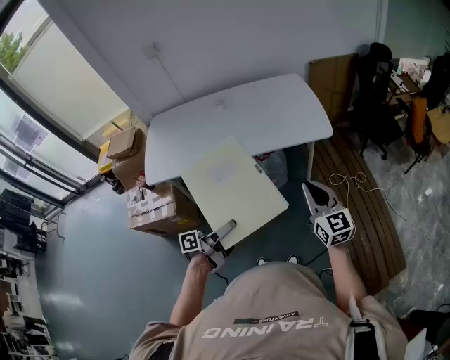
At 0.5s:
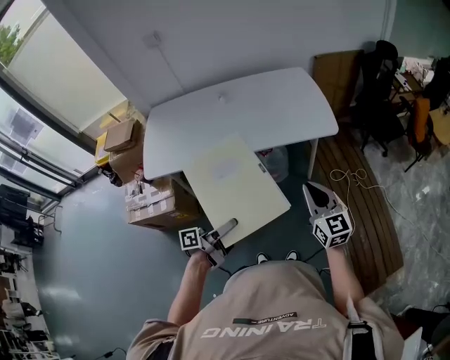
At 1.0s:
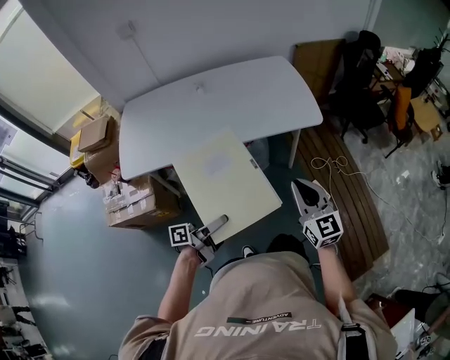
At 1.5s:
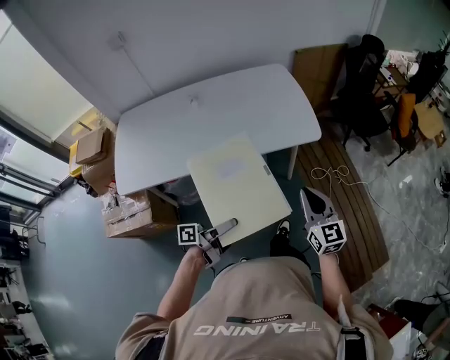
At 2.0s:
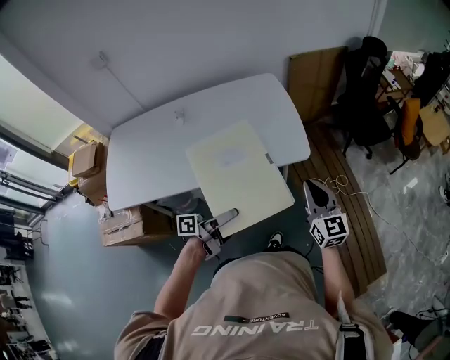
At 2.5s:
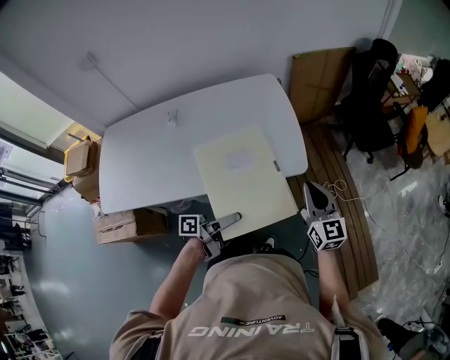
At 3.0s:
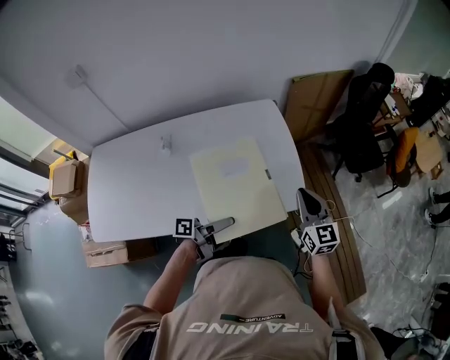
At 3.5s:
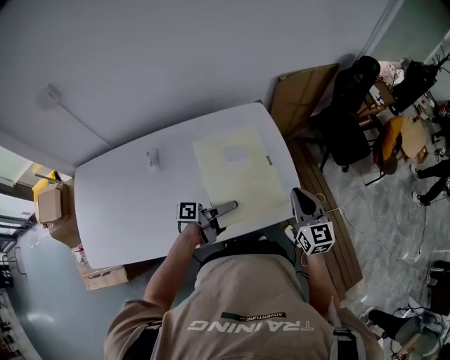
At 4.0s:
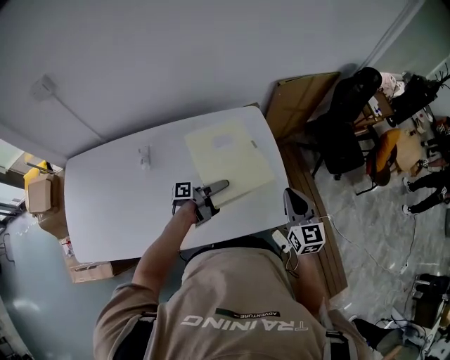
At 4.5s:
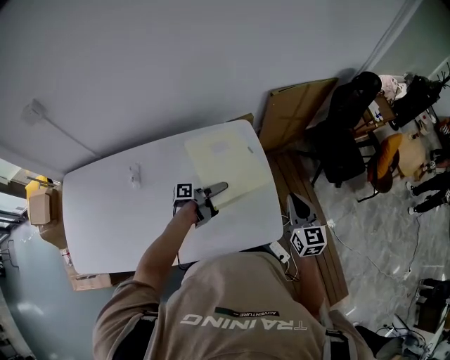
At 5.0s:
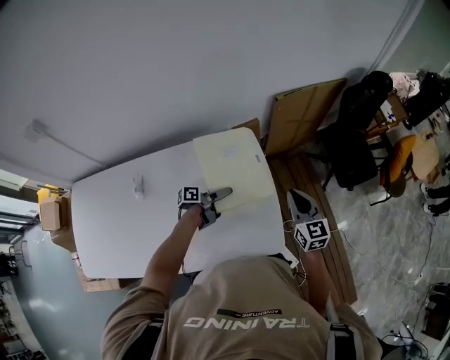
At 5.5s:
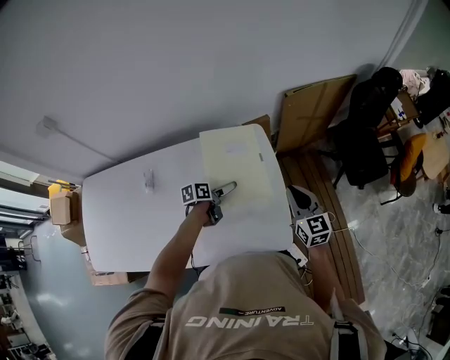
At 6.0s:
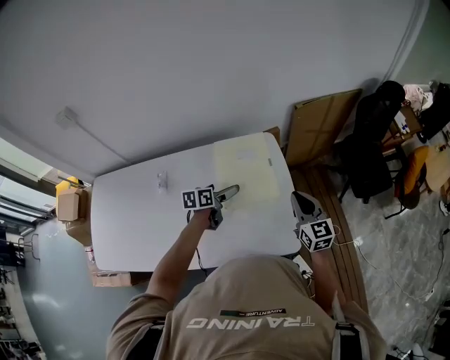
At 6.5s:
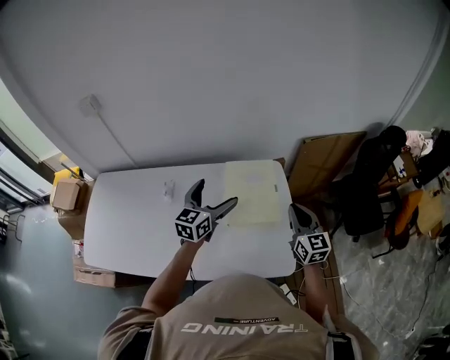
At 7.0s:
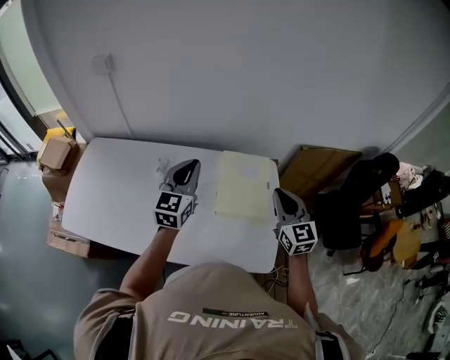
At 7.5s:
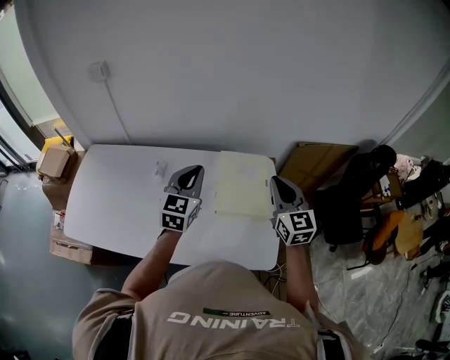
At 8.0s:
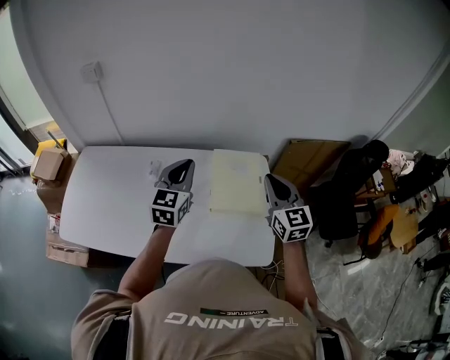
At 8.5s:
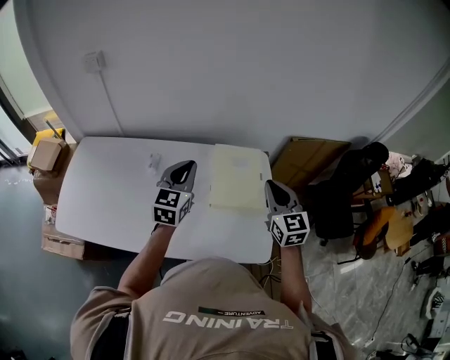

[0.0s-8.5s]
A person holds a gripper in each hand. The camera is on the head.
0.0s to 2.0s: The right gripper goes about 25 cm forward and to the right. The left gripper shifts some 25 cm forward.
2.0s to 4.0s: The left gripper moves forward, some 40 cm; the right gripper is displaced forward and to the left by about 30 cm.
4.0s to 6.5s: The left gripper goes about 20 cm upward, twists roughly 80 degrees clockwise, seen from behind, and opens up. Meanwhile the right gripper shifts by some 10 cm.
6.5s to 8.5s: The left gripper moves to the left, roughly 5 cm, and closes up. Meanwhile the right gripper shifts some 10 cm to the left and upward.

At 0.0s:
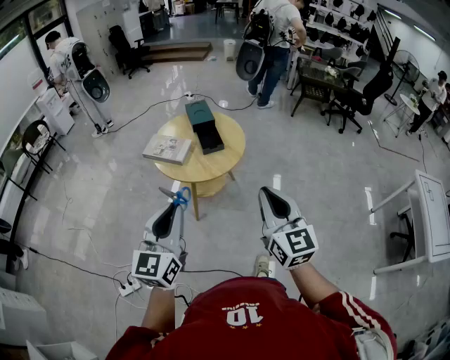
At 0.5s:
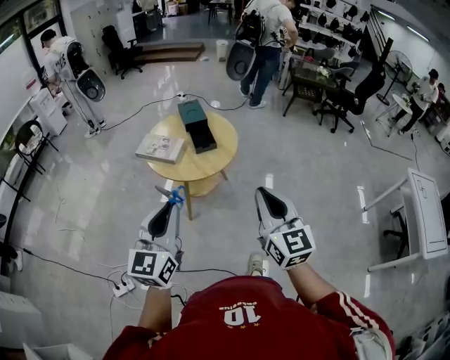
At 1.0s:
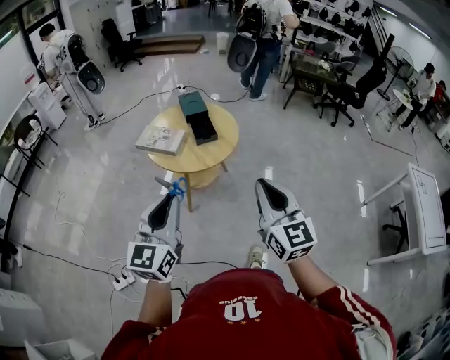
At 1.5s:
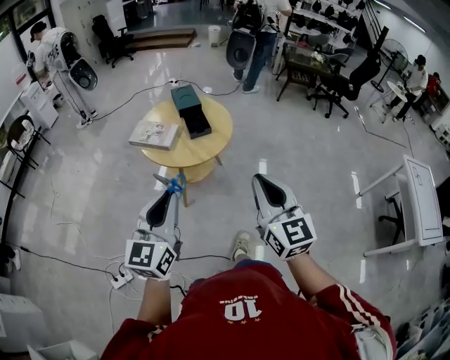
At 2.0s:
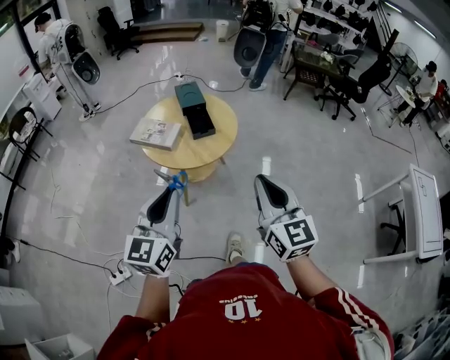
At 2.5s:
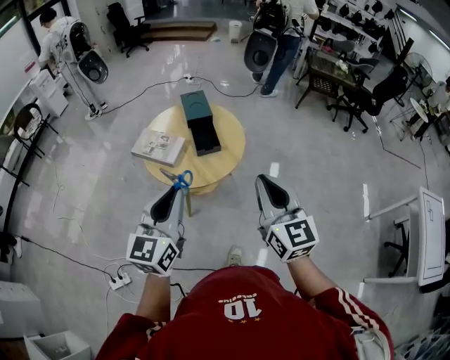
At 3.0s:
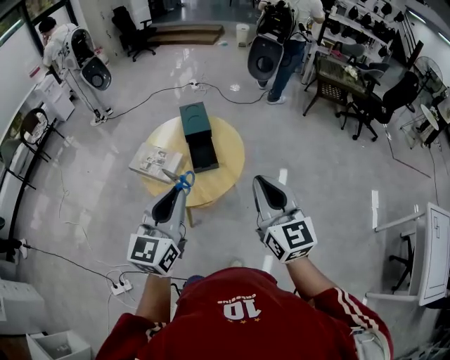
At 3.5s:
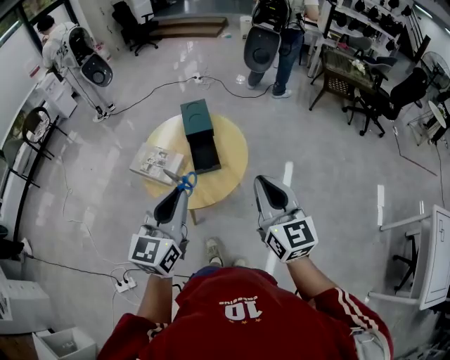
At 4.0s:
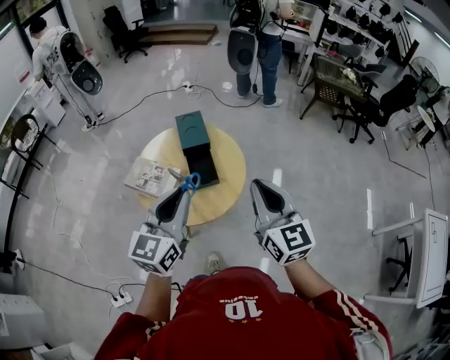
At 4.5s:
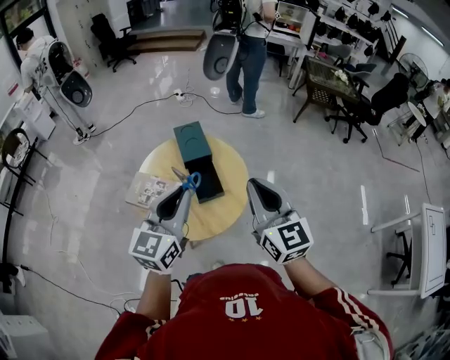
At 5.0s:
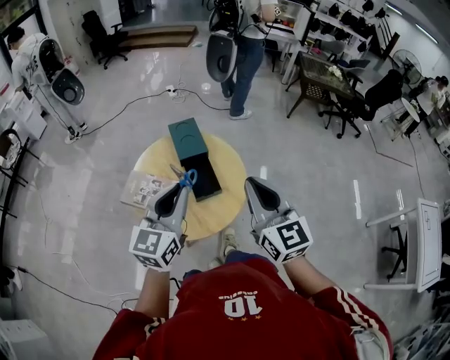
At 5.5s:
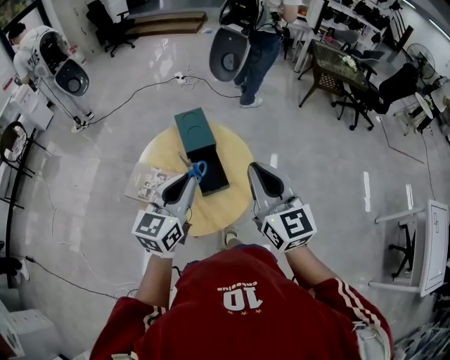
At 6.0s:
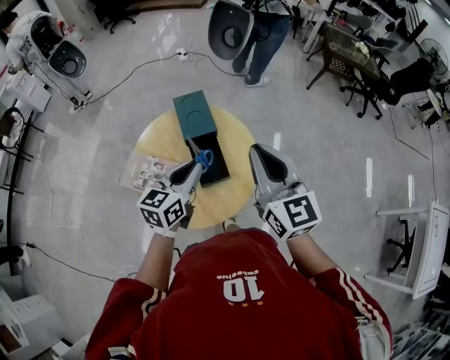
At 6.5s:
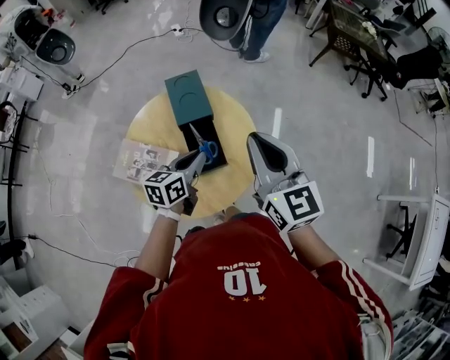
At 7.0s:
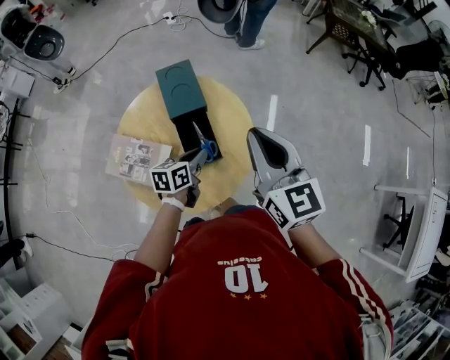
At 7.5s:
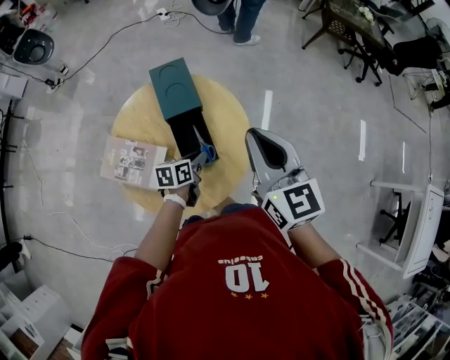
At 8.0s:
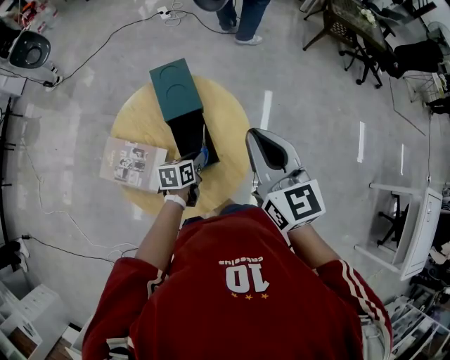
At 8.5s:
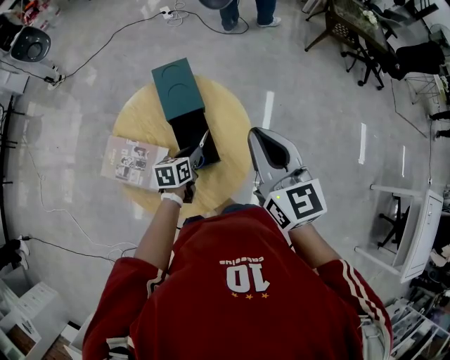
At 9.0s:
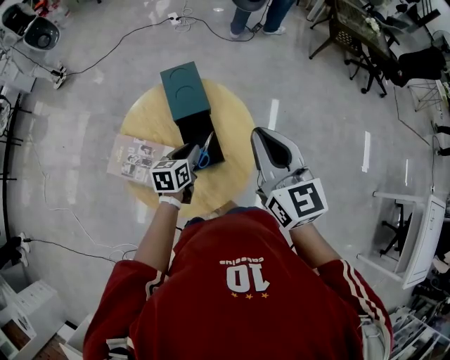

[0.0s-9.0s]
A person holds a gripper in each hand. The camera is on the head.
0.0s to 2.0s: The grippers move only a little.
2.0s to 4.5s: Both grippers travel together forward, some 35 cm.
4.5s to 7.0s: The right gripper heads forward and downward, covering about 20 cm. Meanwhile the left gripper travels downward and forward by approximately 35 cm, and turns by roughly 50 degrees.

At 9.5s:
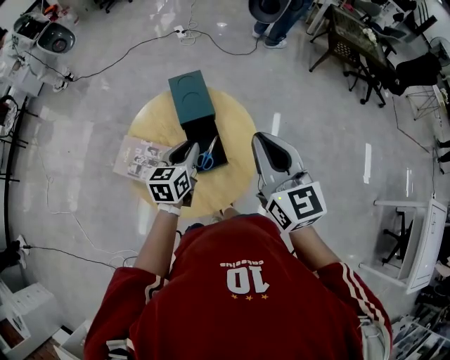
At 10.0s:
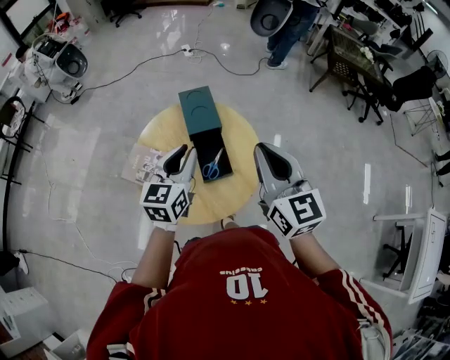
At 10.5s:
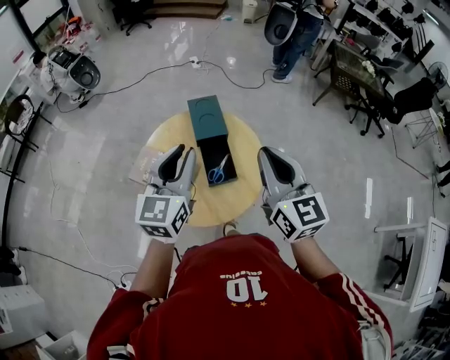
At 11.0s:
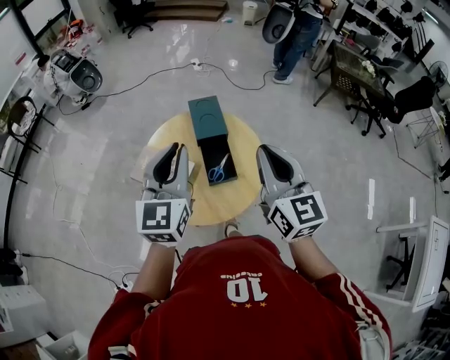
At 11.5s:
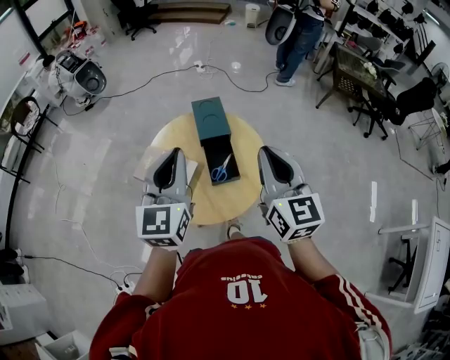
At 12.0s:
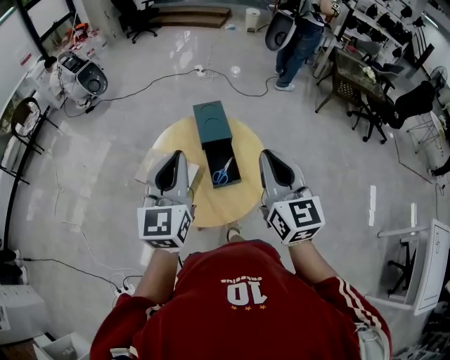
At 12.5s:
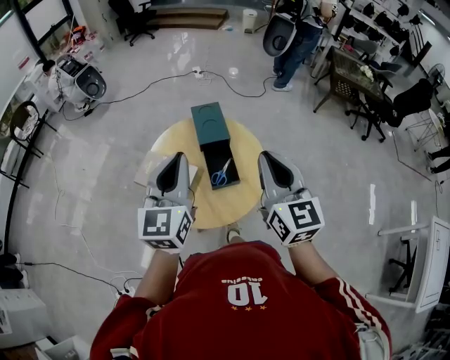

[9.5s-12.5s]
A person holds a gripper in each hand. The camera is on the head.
9.5s to 11.0s: The left gripper heads upward, covering some 25 cm, and turns by roughly 40 degrees. Meanwhile the right gripper is displaced backward and upward by about 10 cm.
11.0s to 12.5s: There are only small adjustments of the grippers.

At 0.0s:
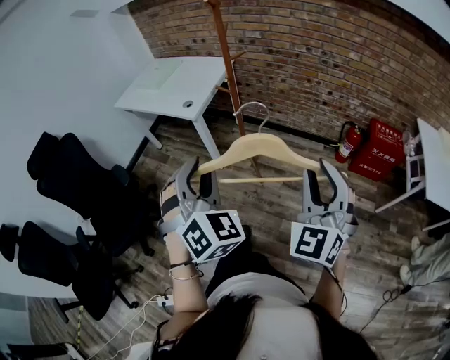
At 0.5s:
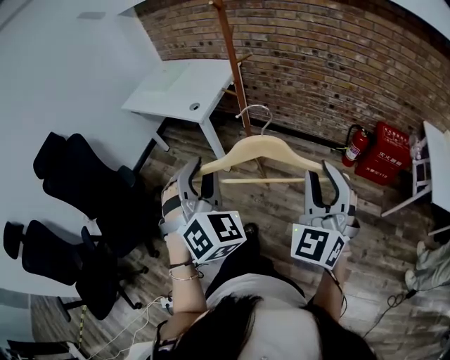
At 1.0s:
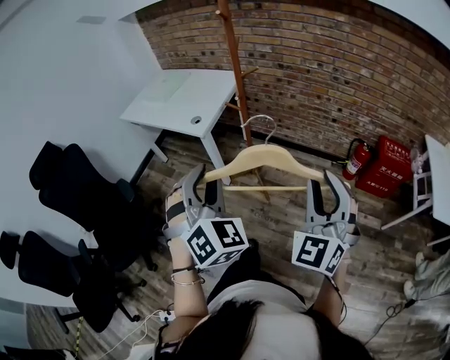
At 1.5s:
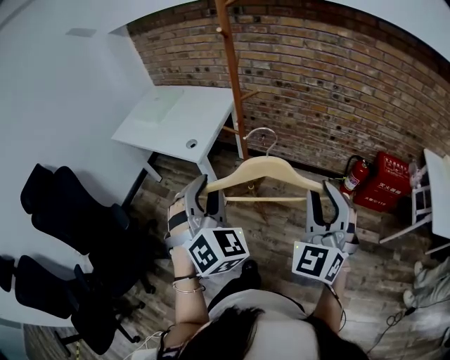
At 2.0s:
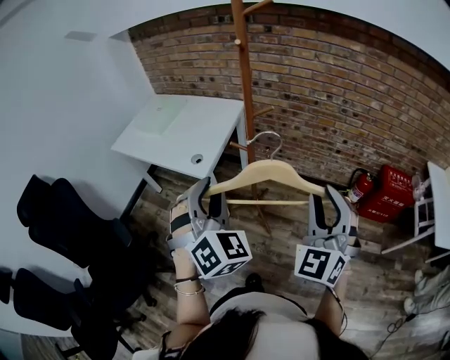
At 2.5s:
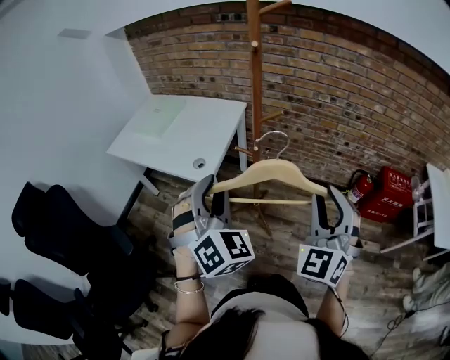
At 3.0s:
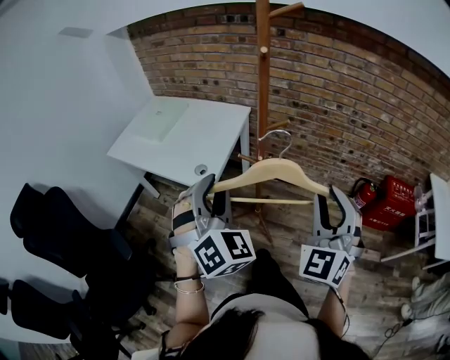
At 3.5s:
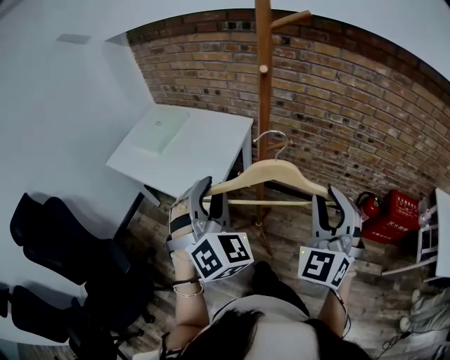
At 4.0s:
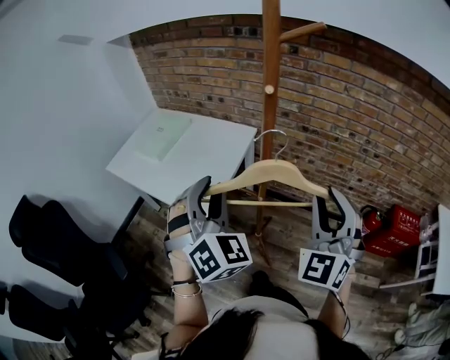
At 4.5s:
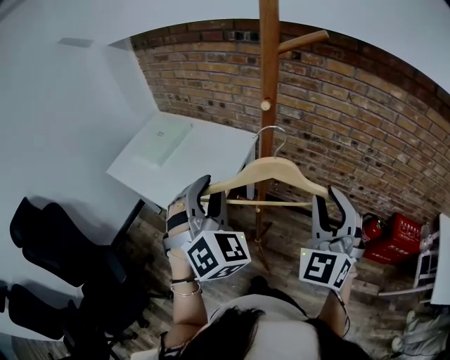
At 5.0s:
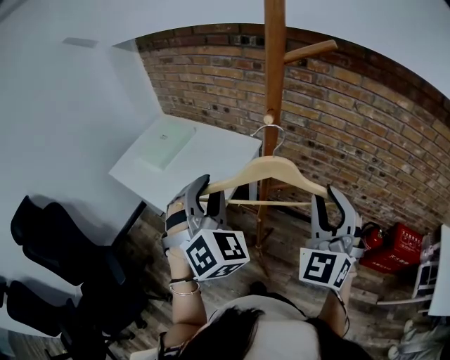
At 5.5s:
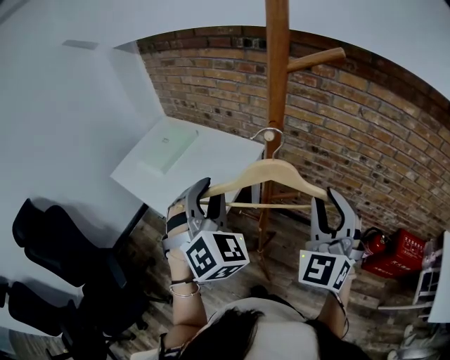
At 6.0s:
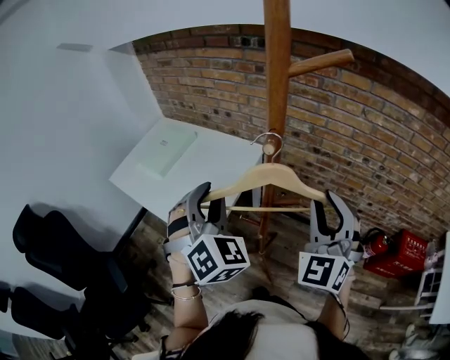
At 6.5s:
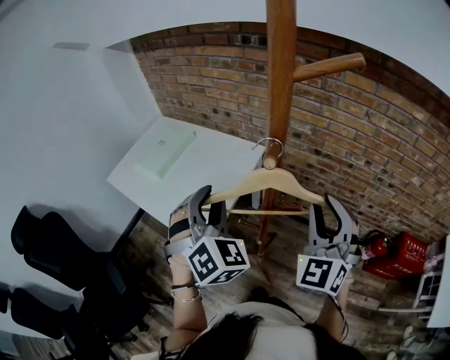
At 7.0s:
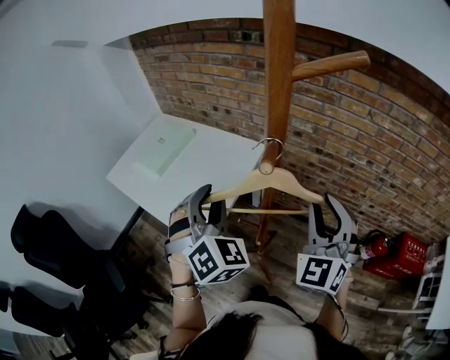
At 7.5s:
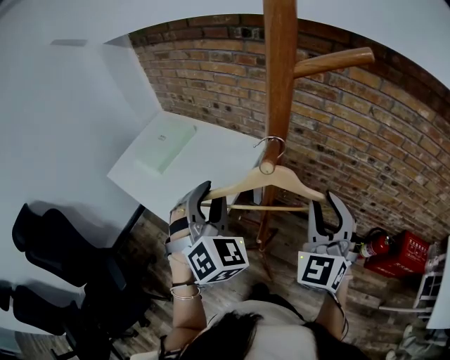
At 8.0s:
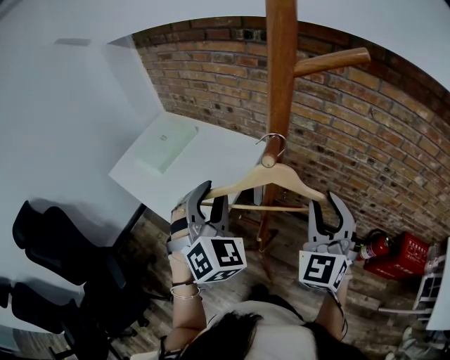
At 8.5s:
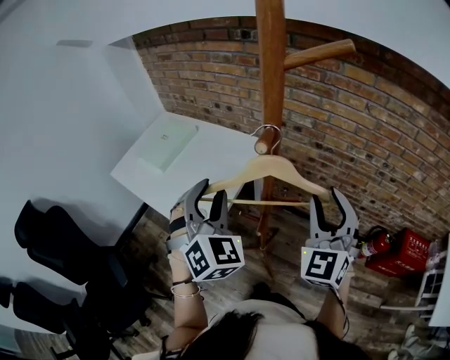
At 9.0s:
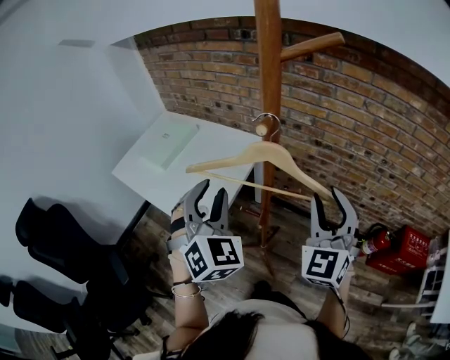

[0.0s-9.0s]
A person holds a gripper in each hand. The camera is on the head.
0.0s to 2.0s: Both grippers travel together forward, approximately 25 cm.
2.0s to 4.5s: Both grippers travel together forward, some 25 cm.
4.5s to 7.0s: Both grippers move forward, some 10 cm.
7.0s to 9.0s: The grippers make only small movements.
